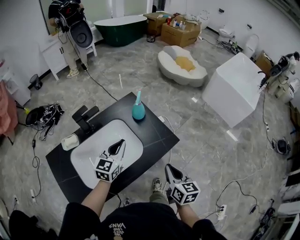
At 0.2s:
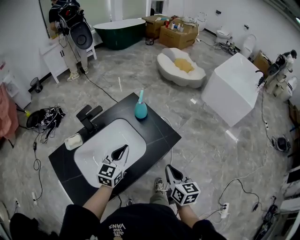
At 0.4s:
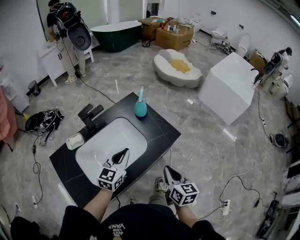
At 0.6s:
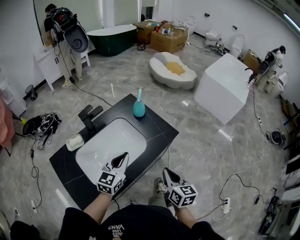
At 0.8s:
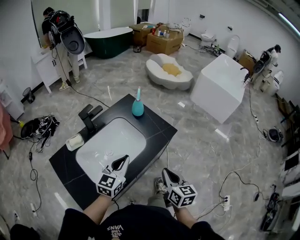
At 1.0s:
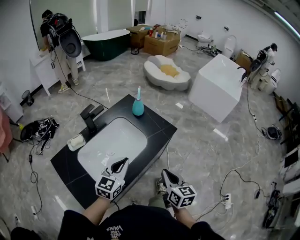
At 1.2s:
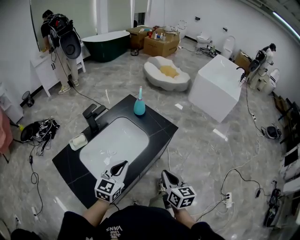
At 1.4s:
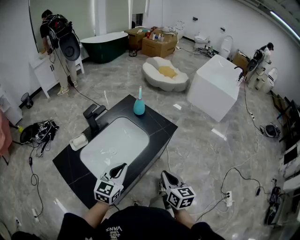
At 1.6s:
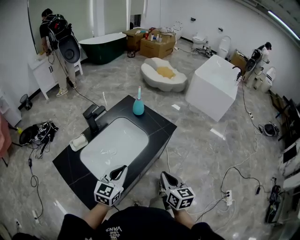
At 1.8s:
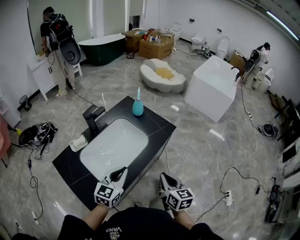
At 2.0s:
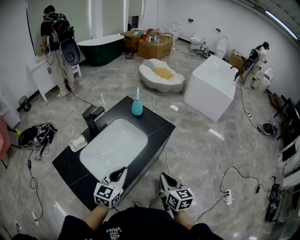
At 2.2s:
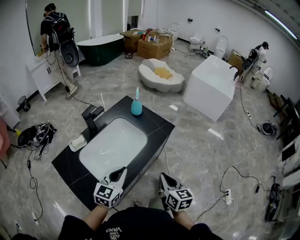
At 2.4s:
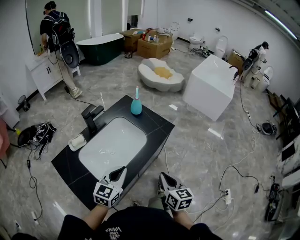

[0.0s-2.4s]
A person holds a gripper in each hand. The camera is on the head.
0.0s to 1.2s: The left gripper shifts approximately 20 cm backward. Meanwhile the right gripper travels backward and to the left by roughly 15 cm.
1.2s to 2.4s: The grippers move only a little.

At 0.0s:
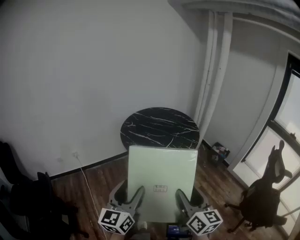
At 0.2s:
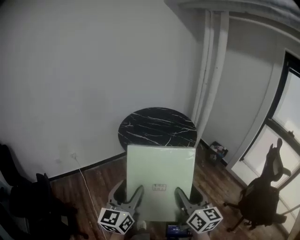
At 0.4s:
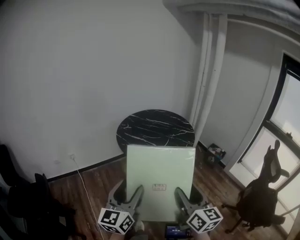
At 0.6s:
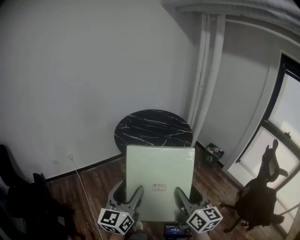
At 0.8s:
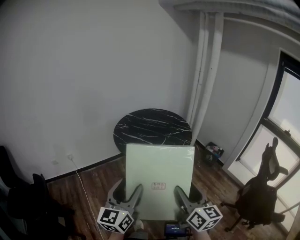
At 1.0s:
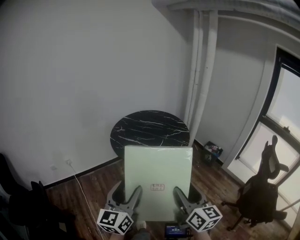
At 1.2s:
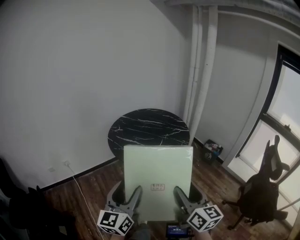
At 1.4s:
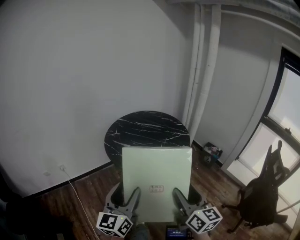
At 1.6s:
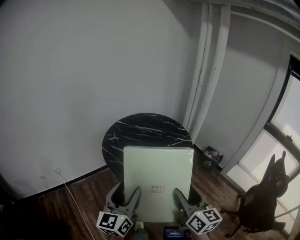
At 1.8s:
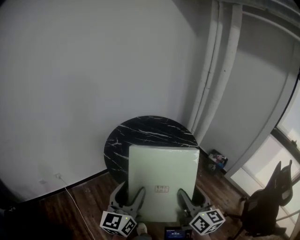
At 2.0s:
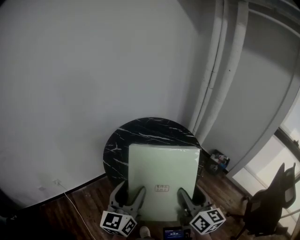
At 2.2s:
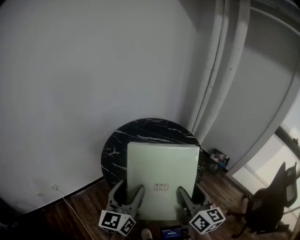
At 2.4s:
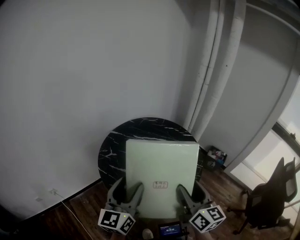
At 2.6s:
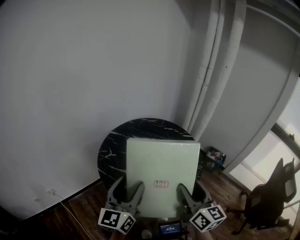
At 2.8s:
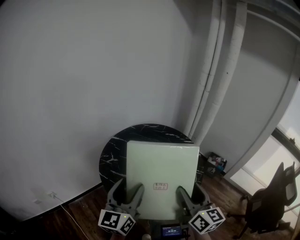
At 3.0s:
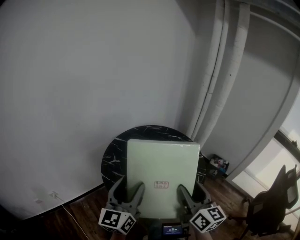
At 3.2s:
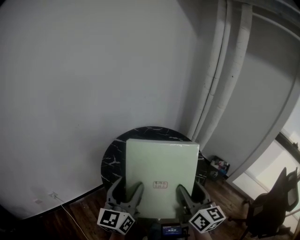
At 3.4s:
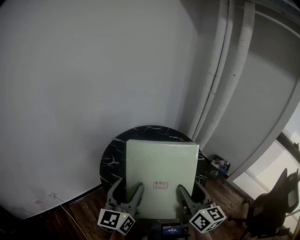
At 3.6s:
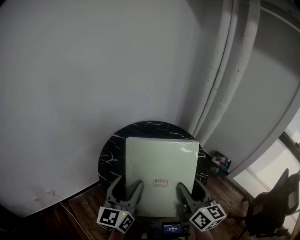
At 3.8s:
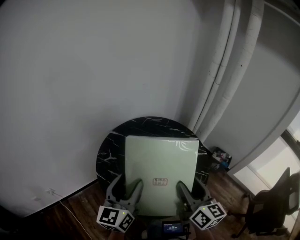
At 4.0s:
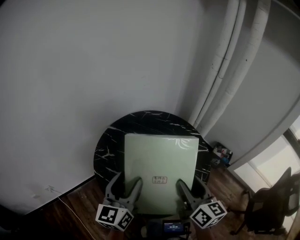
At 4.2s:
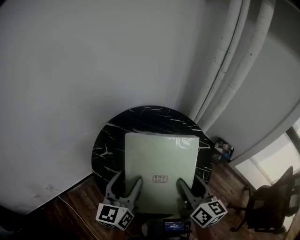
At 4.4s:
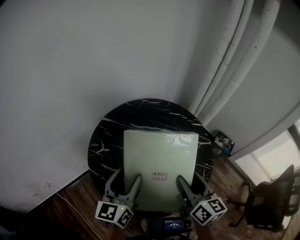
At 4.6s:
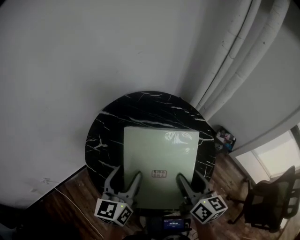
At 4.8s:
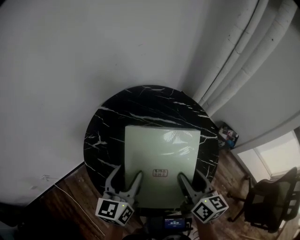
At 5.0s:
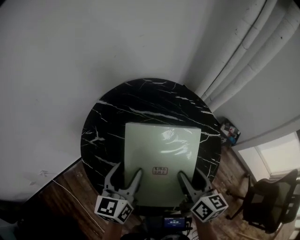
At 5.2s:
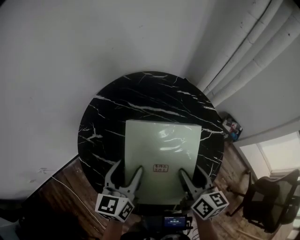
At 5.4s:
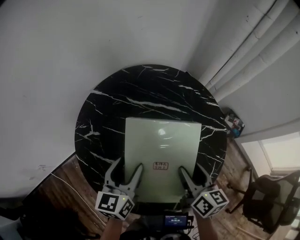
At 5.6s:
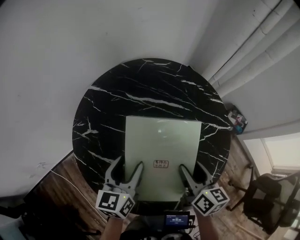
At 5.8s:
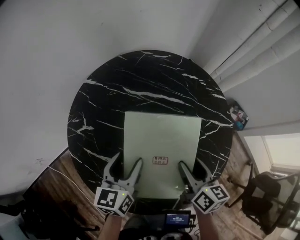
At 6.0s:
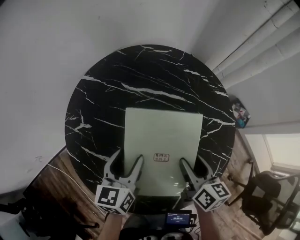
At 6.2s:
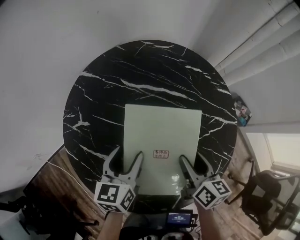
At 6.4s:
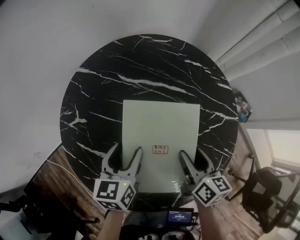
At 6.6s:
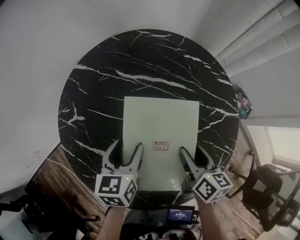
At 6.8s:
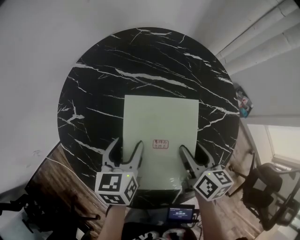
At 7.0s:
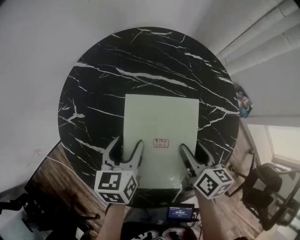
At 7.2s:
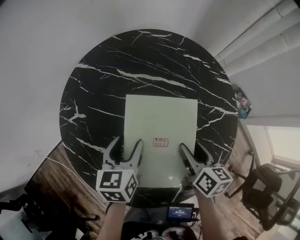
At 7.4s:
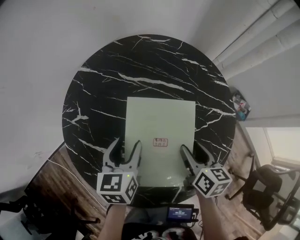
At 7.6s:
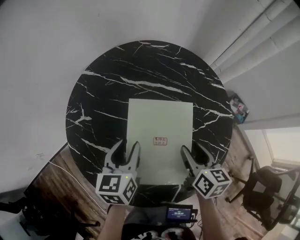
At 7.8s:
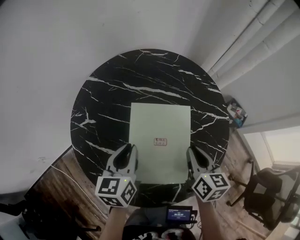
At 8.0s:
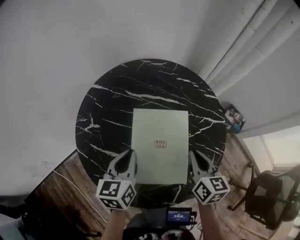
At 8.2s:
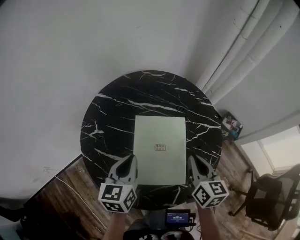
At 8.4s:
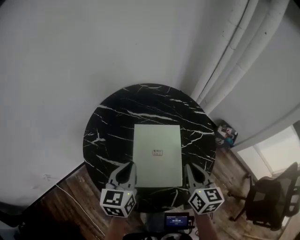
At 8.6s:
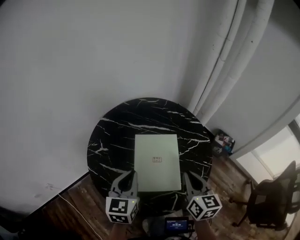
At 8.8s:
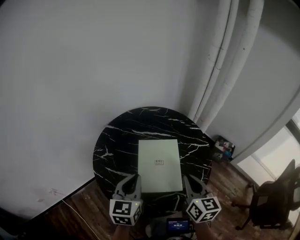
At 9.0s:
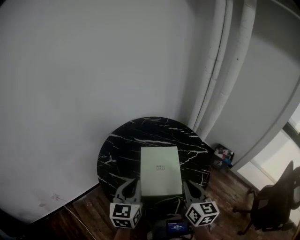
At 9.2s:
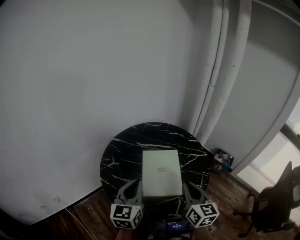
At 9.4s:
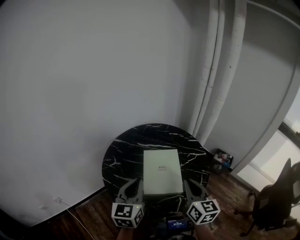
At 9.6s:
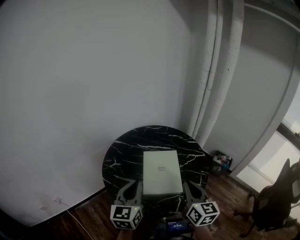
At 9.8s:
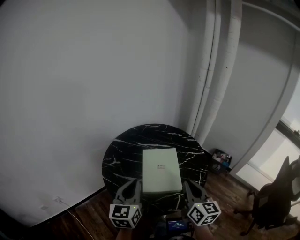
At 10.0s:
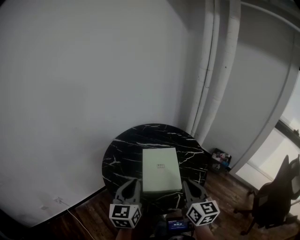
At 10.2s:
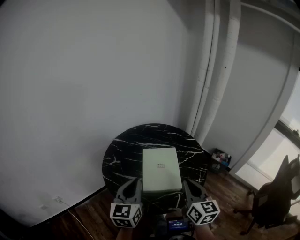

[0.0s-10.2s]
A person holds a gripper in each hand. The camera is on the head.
0.0s to 1.4s: The grippers both shift forward by approximately 10 cm.
1.4s to 3.0s: The grippers both shift forward by some 30 cm.
3.0s to 4.4s: Both grippers travel together forward and downward, roughly 20 cm.
4.4s to 5.8s: Both grippers move downward and forward, some 20 cm.
5.8s to 7.2s: The right gripper shifts some 5 cm downward. Meanwhile the left gripper moves about 5 cm.
7.2s to 8.8s: Both grippers travel together upward and backward, some 25 cm. The right gripper changes its angle by some 30 degrees, and closes up. The left gripper changes its angle by about 30 degrees, and closes.
8.8s to 10.2s: The two grippers go about 10 cm backward and upward.

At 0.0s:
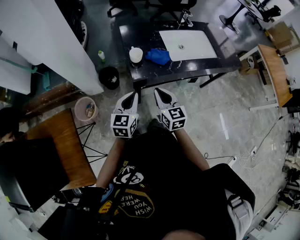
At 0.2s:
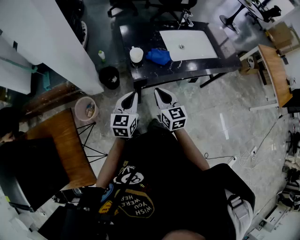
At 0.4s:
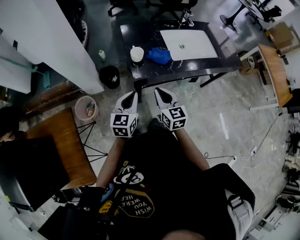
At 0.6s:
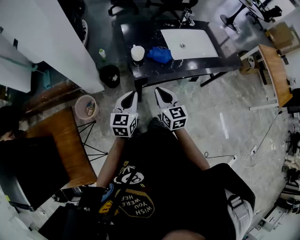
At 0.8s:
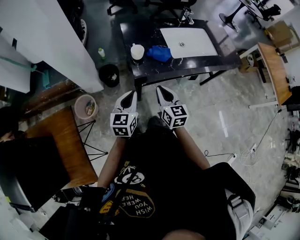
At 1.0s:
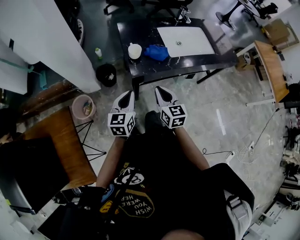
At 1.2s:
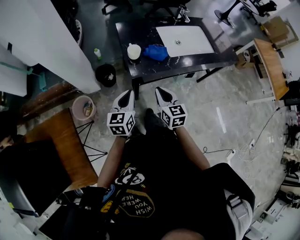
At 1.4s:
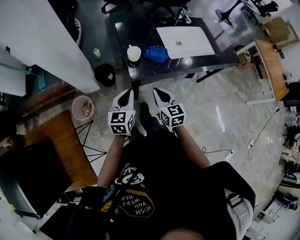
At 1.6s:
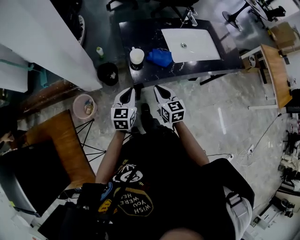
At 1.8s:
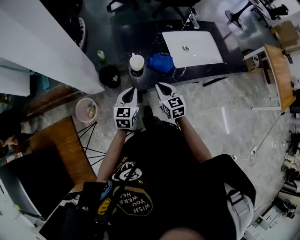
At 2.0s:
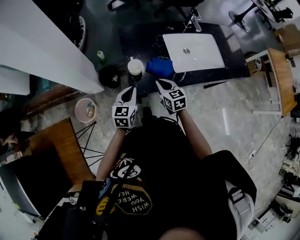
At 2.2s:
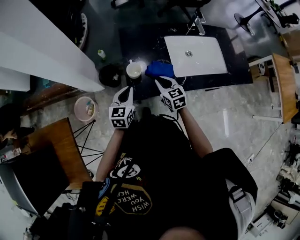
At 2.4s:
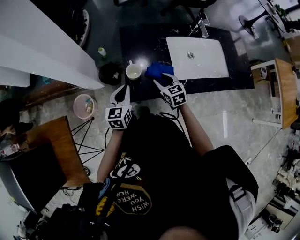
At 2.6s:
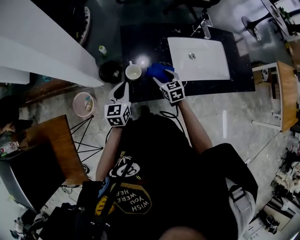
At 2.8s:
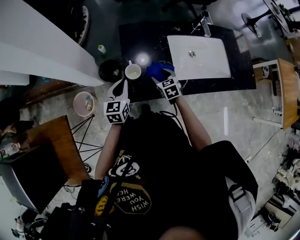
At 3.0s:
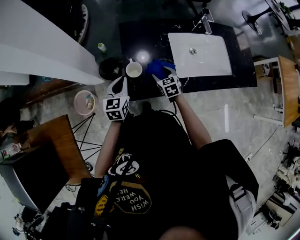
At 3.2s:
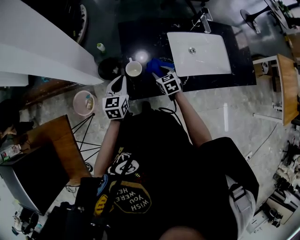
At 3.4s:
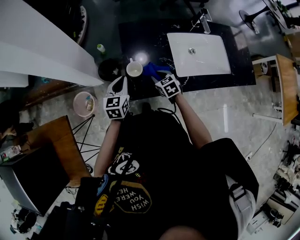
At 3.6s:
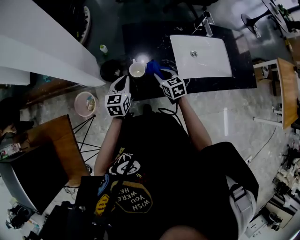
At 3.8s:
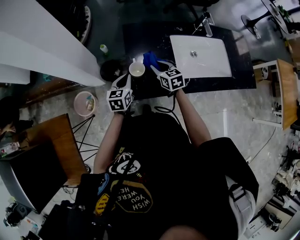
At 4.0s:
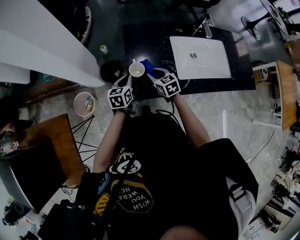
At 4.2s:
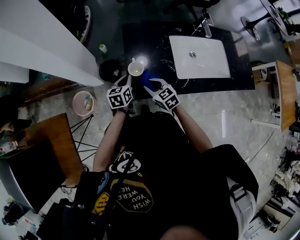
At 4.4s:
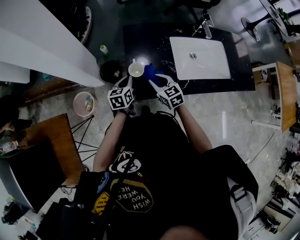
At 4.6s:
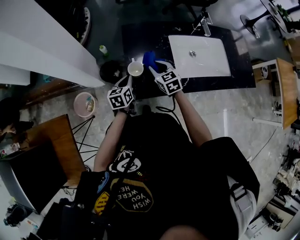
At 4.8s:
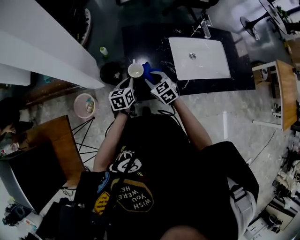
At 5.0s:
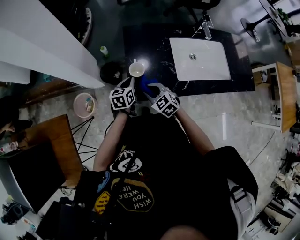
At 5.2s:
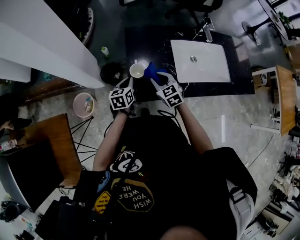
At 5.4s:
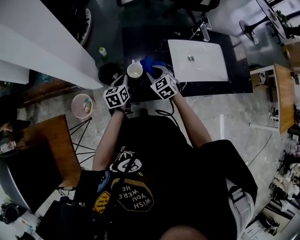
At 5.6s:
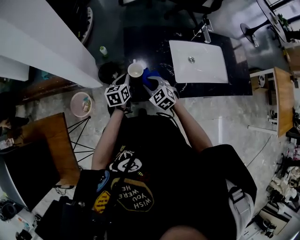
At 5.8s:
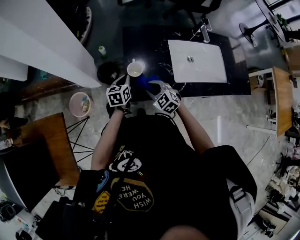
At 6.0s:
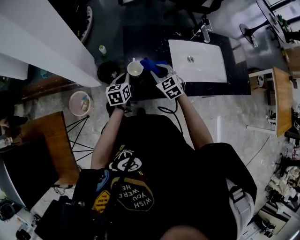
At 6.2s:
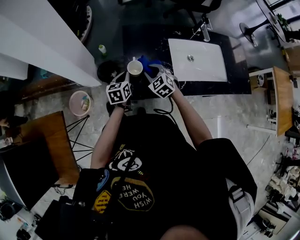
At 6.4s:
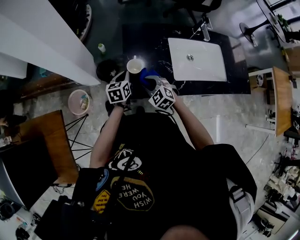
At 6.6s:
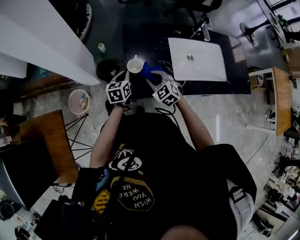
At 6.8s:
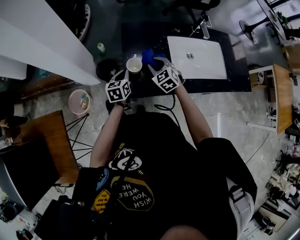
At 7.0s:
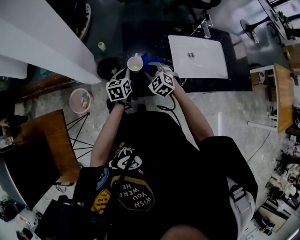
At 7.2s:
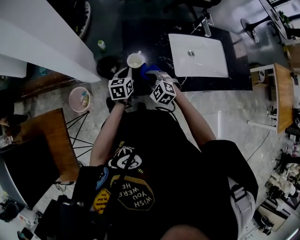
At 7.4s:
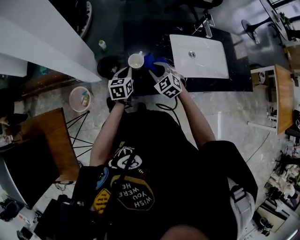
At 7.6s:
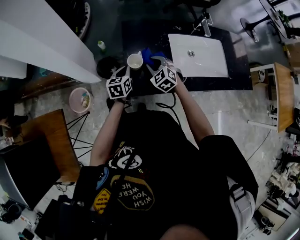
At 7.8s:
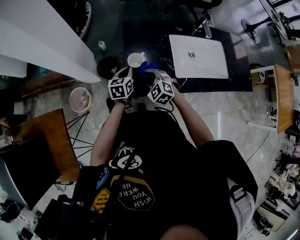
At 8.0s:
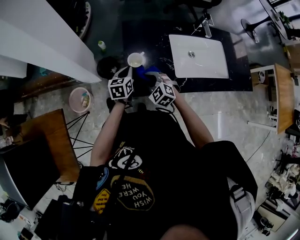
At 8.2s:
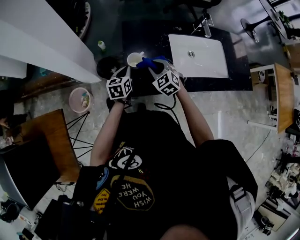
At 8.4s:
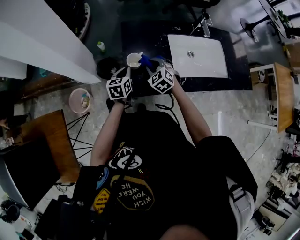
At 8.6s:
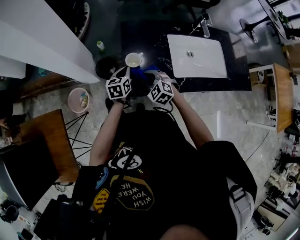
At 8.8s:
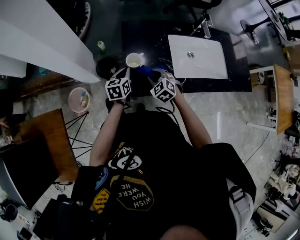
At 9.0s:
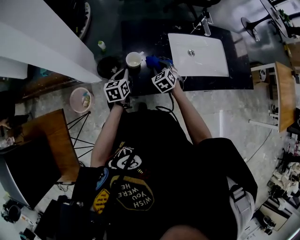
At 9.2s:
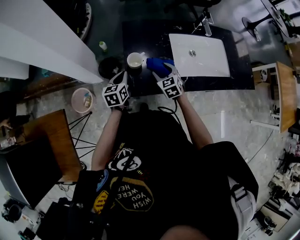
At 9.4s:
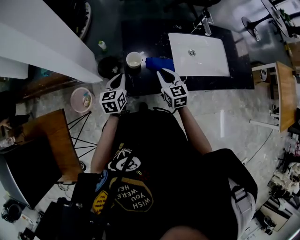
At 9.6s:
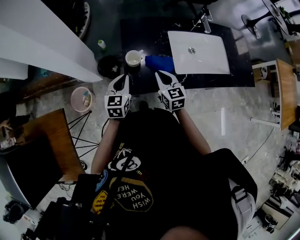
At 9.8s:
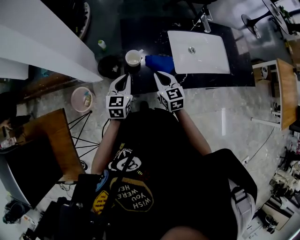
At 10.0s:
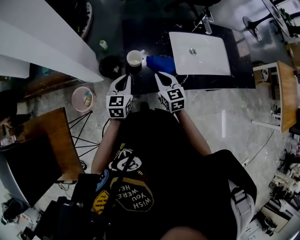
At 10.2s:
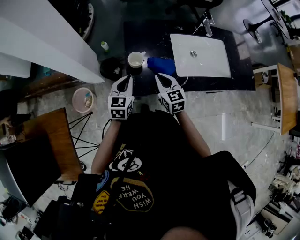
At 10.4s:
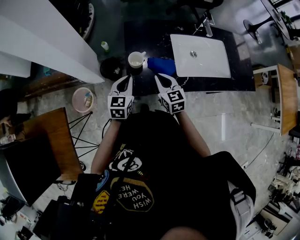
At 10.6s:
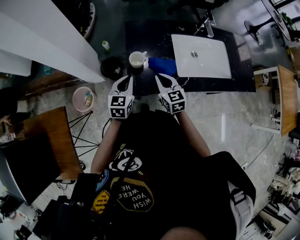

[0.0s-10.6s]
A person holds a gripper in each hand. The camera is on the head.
0.0s to 1.6s: The right gripper is displaced forward and downward by about 10 cm. Meanwhile the left gripper moves forward, about 5 cm.
1.6s to 3.0s: The left gripper travels forward by roughly 15 cm. Meanwhile the right gripper is displaced forward and downward by some 25 cm, rotates roughly 20 degrees, and opens its fingers.
3.0s to 4.6s: The right gripper is displaced upward by some 10 cm, reaches approximately 5 cm backward, then returns, and closes its fingers. The left gripper shifts about 5 cm downward.
4.6s to 6.0s: The right gripper swings forward and backward, about 10 cm each way, with 3 reversals.
6.0s to 7.6s: The right gripper moves forward and backward over roughly 10 cm, changing direction 3 times.
7.6s to 9.0s: The right gripper moves left and right over some 10 cm, changing direction 3 times.
9.0s to 10.6s: The grippers both shift upward and backward by about 10 cm. The right gripper changes its angle by some 40 degrees, and closes its fingers; the left gripper rotates some 20 degrees.
